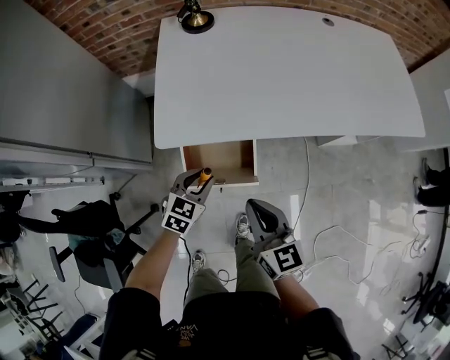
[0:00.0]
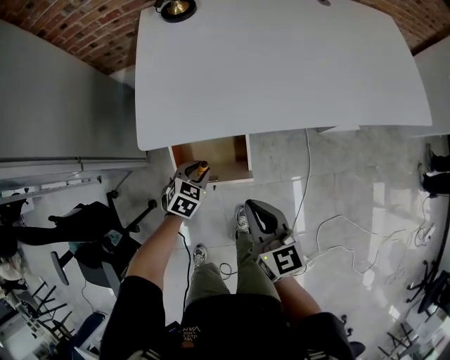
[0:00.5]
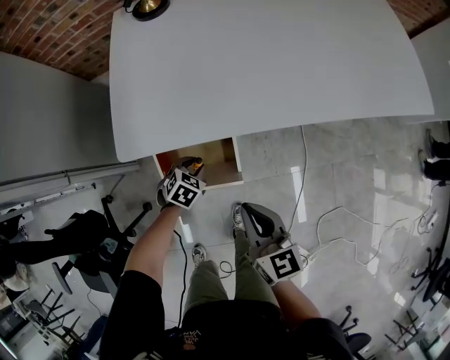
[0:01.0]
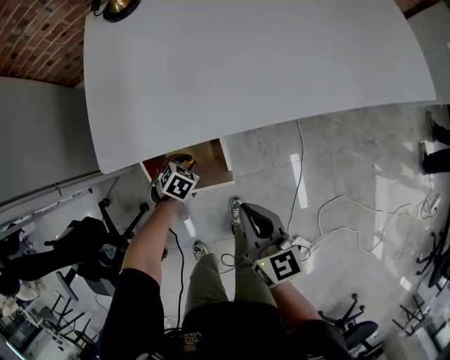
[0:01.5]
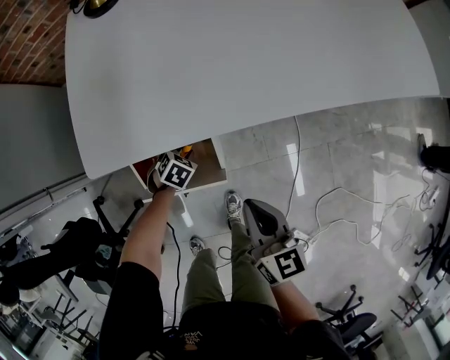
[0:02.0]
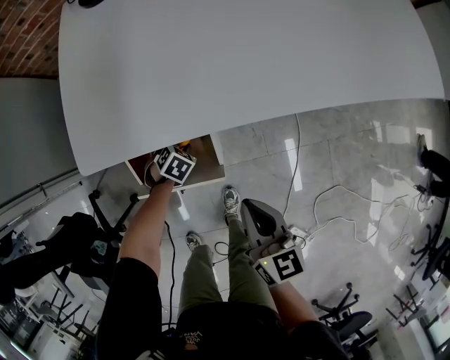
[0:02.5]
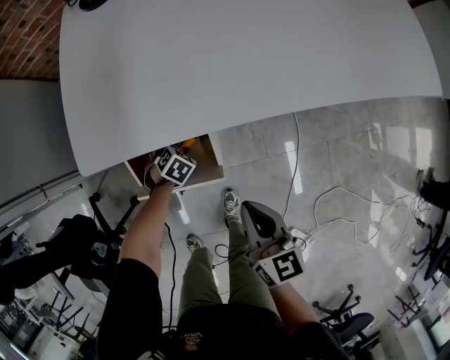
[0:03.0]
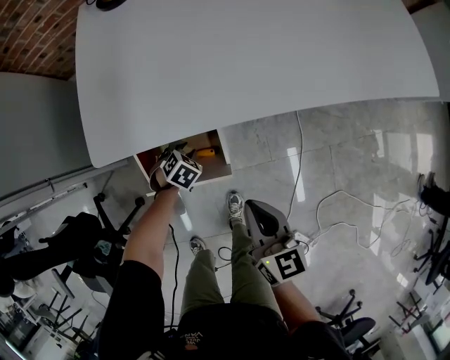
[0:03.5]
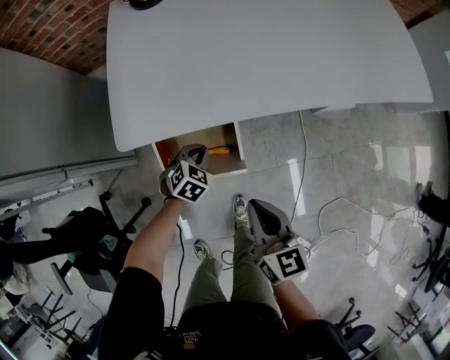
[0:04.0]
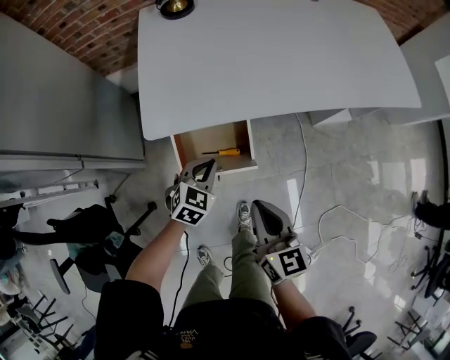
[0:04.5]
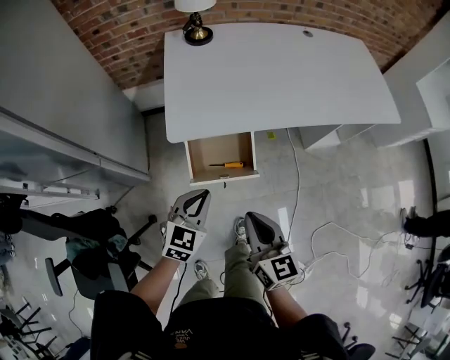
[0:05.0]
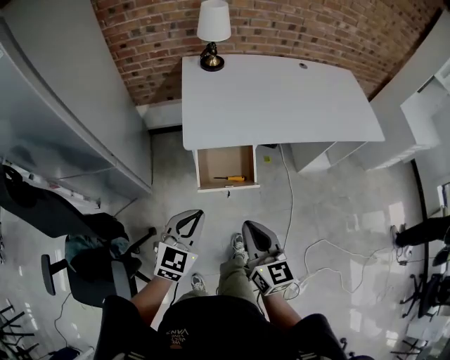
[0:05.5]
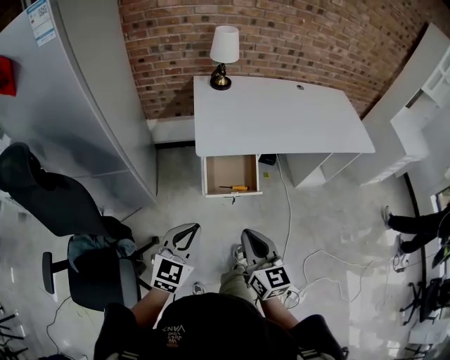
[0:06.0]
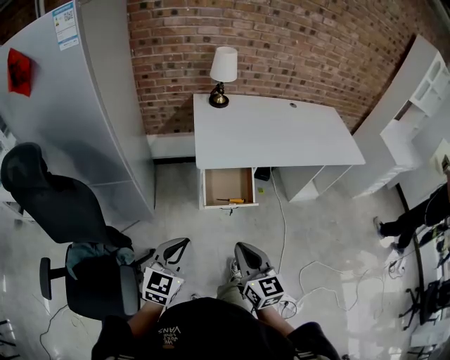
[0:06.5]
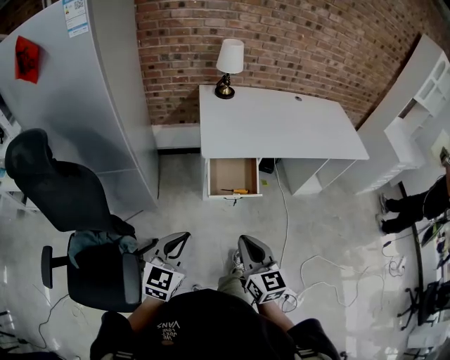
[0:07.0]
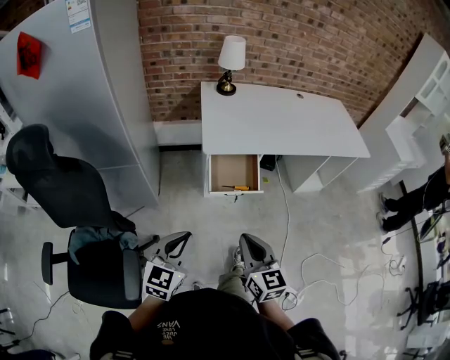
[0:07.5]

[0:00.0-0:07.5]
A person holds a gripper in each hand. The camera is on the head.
0:00.0 to 0:02.0: The right gripper goes some 15 cm downward; the left gripper moves downward, roughly 25 cm, and tips its fingers downward by roughly 30 degrees.
0:02.0 to 0:04.0: The left gripper shifts about 10 cm upward, and closes up, while the right gripper shifts by roughly 10 cm.
0:04.0 to 0:05.5: The right gripper travels backward, upward and to the left by about 30 cm. The left gripper is displaced upward and backward by some 40 cm, and angles its fingers upward, by roughly 40 degrees.
0:05.5 to 0:07.5: Both grippers travel together backward and to the left, approximately 20 cm.

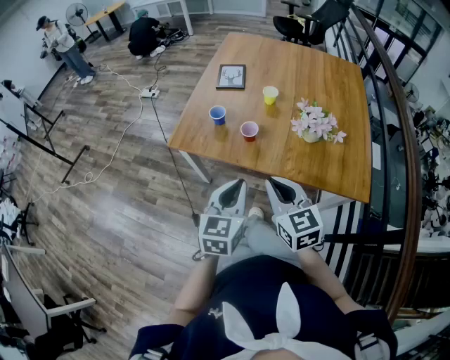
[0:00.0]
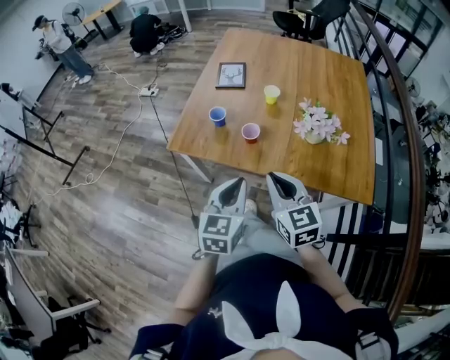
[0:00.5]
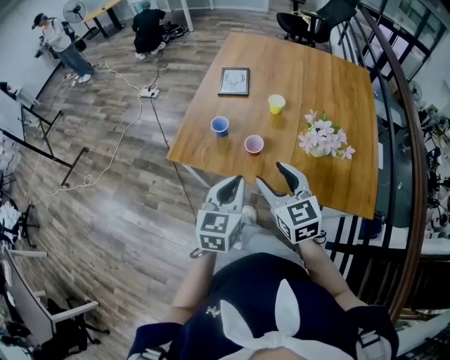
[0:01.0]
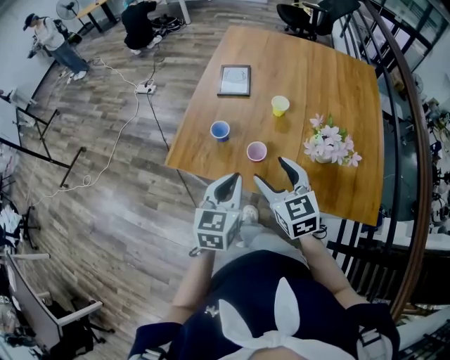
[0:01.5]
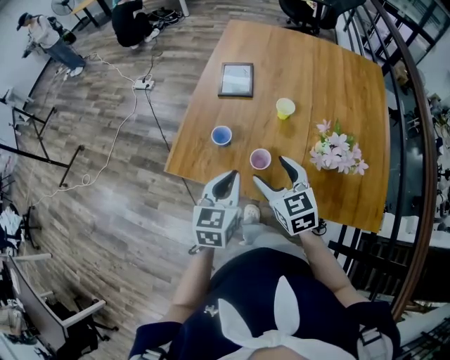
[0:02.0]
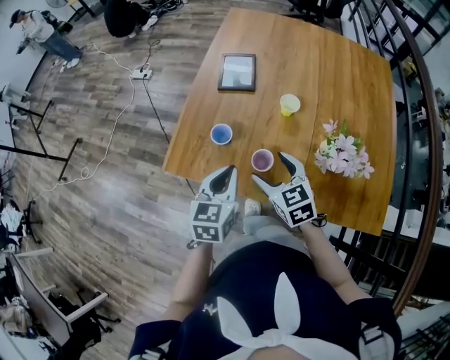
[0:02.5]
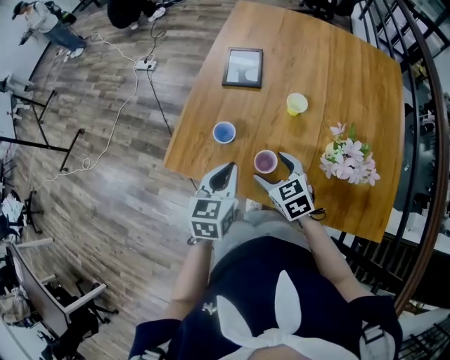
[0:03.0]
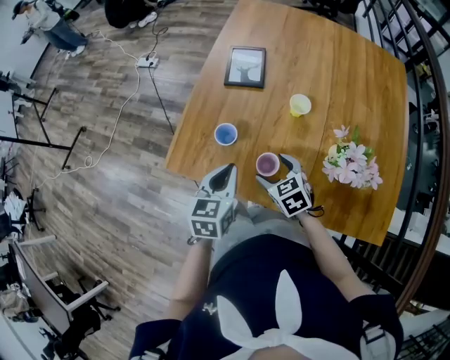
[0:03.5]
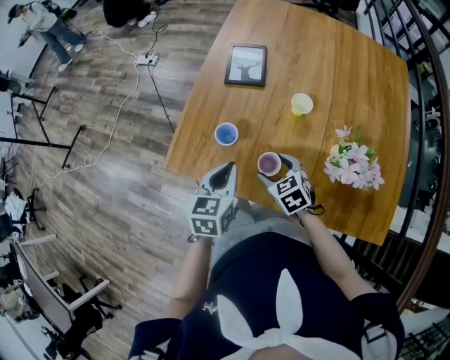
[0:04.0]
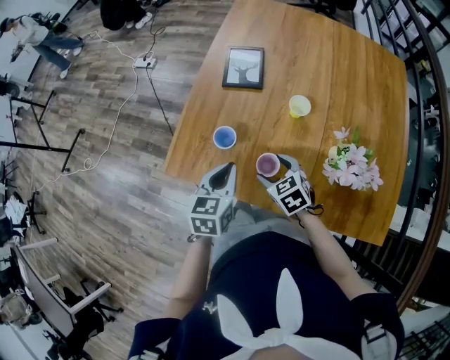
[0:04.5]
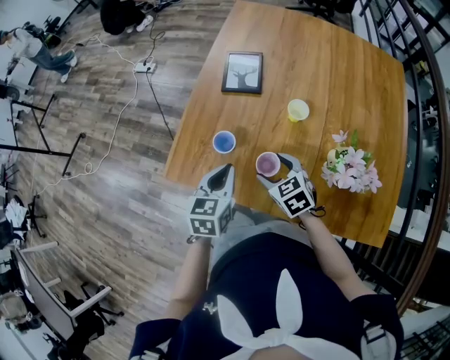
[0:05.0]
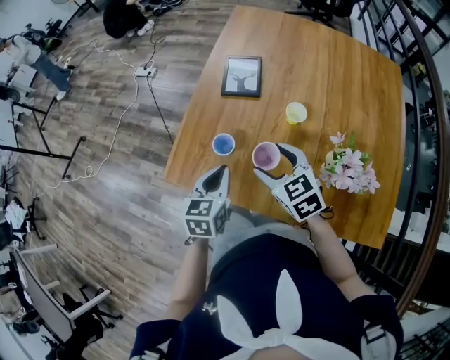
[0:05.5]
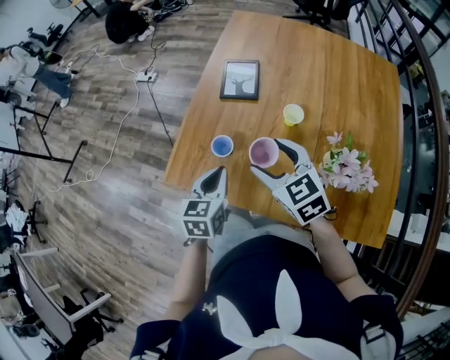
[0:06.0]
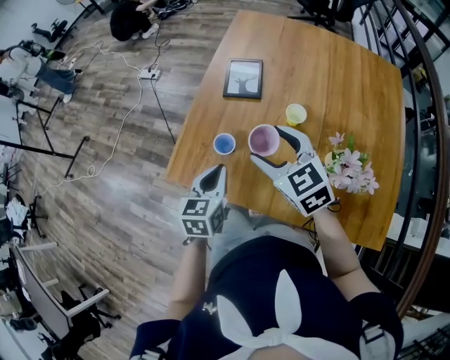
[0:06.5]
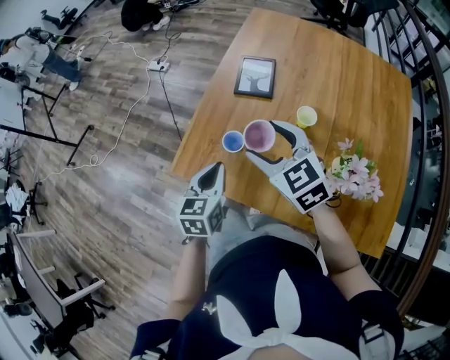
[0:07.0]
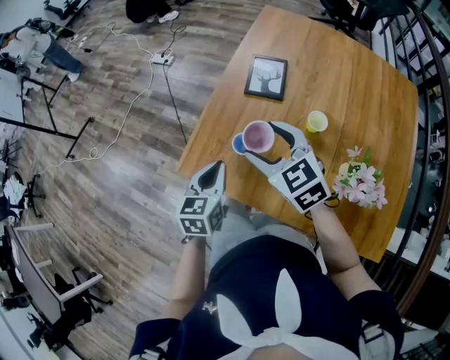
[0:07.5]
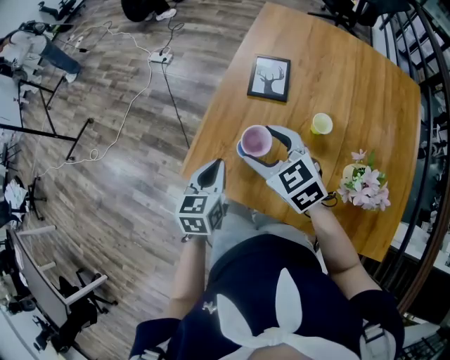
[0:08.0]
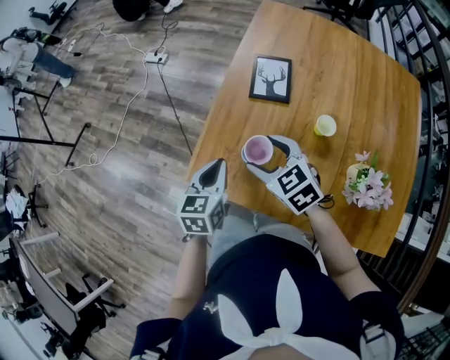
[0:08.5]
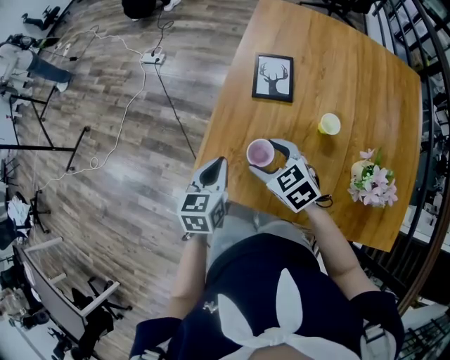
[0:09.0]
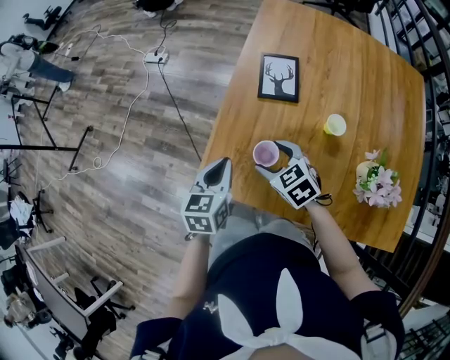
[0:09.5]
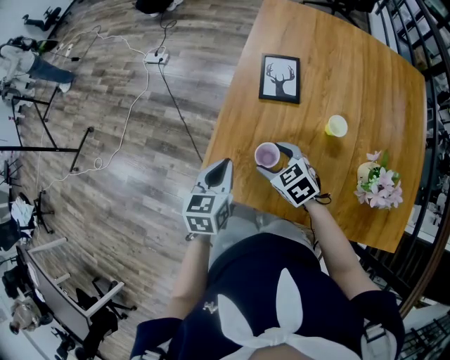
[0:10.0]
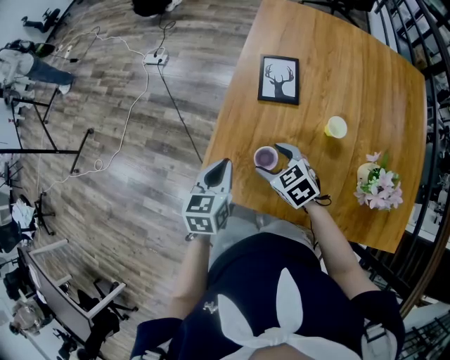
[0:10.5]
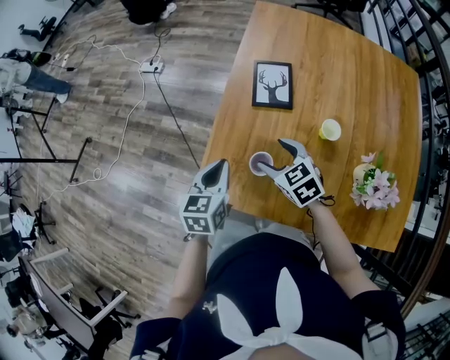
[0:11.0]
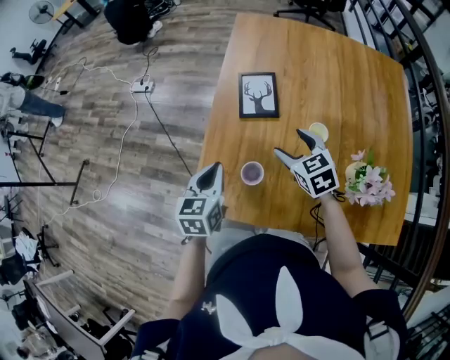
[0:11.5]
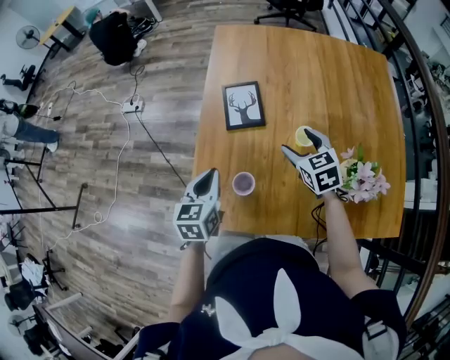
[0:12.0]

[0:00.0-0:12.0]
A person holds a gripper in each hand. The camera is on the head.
0:00.0 to 0:02.0: Both grippers move forward, roughly 25 cm. The right gripper opens up.
0:02.0 to 0:04.0: The left gripper goes some 10 cm forward and downward; the right gripper travels downward and forward by about 20 cm, and changes its angle by roughly 20 degrees.
0:04.0 to 0:06.0: The right gripper travels upward by some 15 cm.
0:06.0 to 0:08.0: Both grippers travel together to the left and forward, approximately 10 cm.
0:08.0 to 0:10.0: The left gripper shifts about 5 cm forward. Meanwhile the right gripper travels downward by approximately 15 cm.
0:10.0 to 0:12.0: The right gripper is displaced to the right by about 20 cm, and changes its angle by approximately 30 degrees; the left gripper heads forward and to the right, covering some 10 cm.

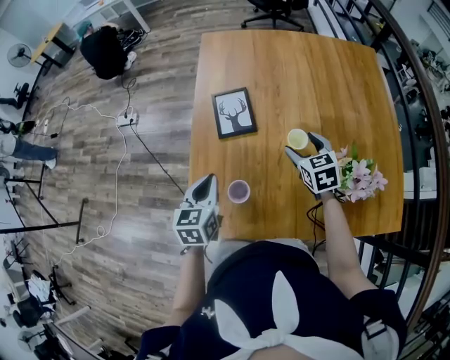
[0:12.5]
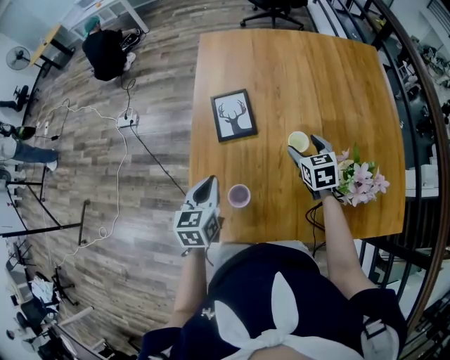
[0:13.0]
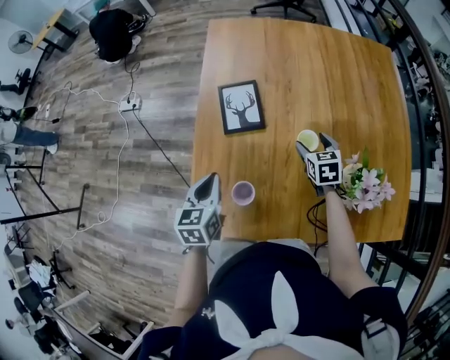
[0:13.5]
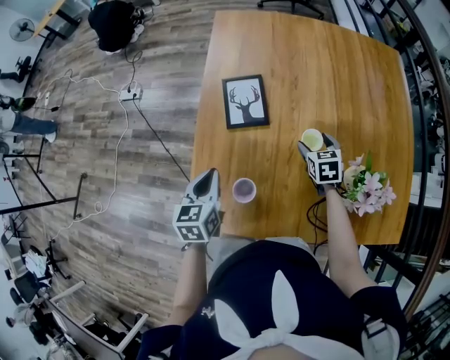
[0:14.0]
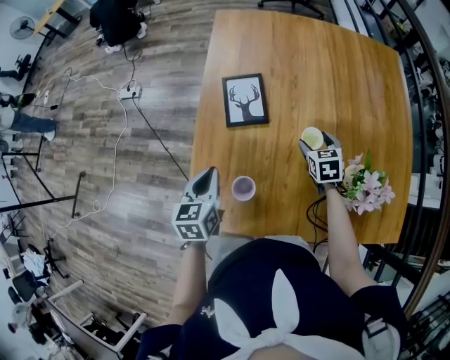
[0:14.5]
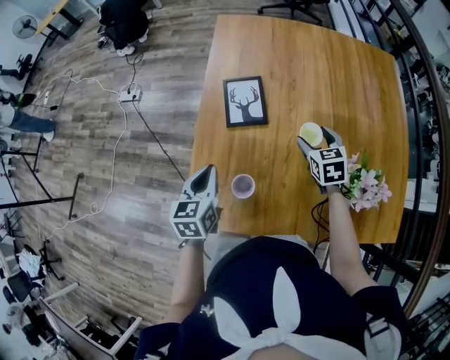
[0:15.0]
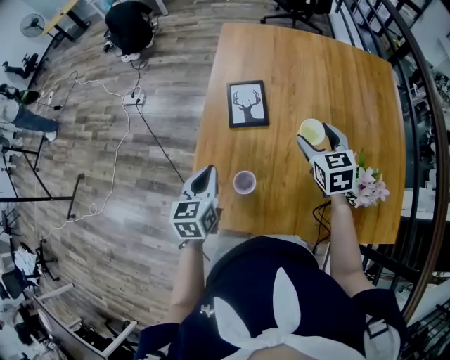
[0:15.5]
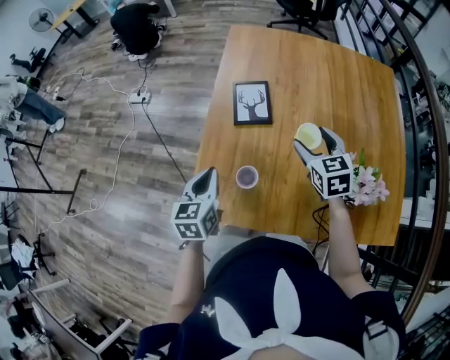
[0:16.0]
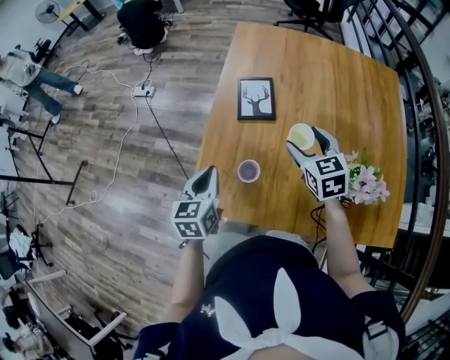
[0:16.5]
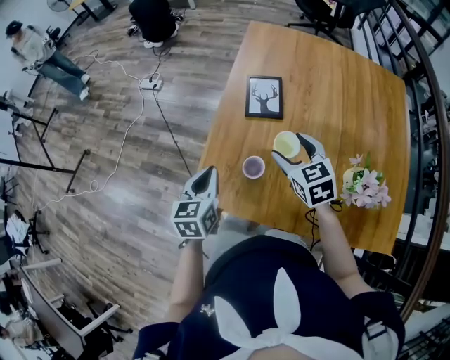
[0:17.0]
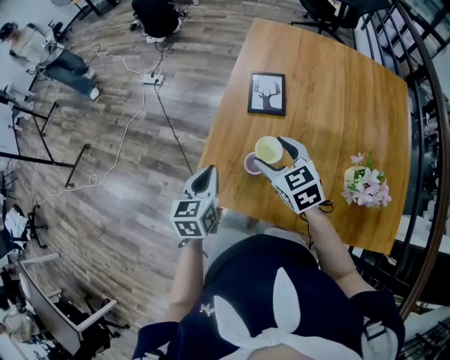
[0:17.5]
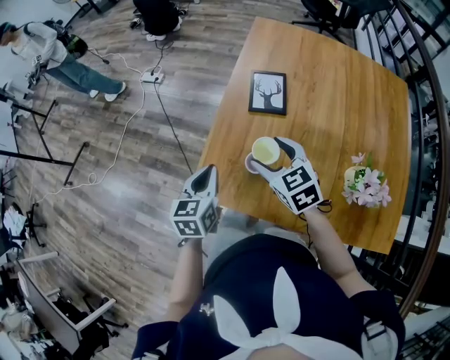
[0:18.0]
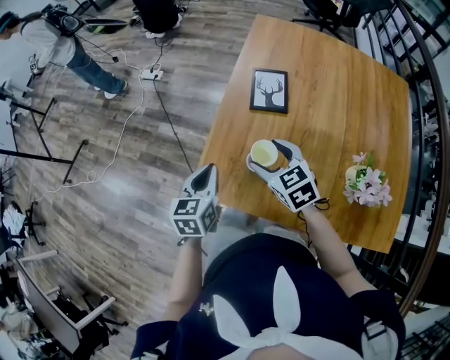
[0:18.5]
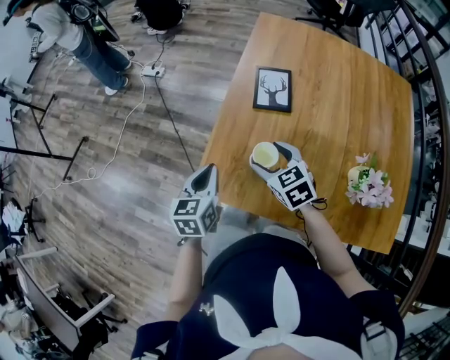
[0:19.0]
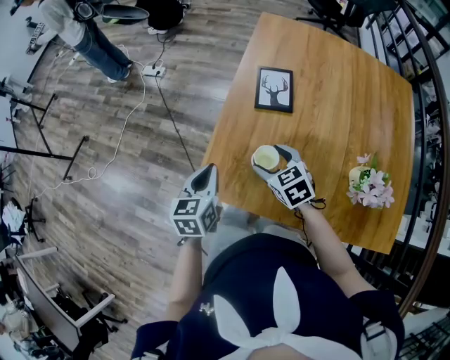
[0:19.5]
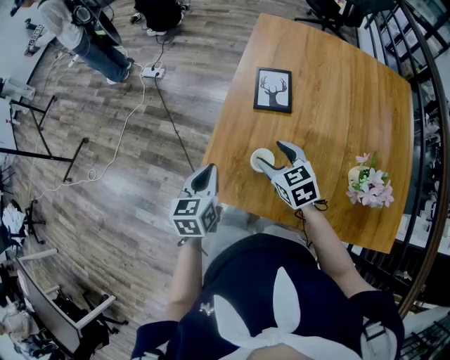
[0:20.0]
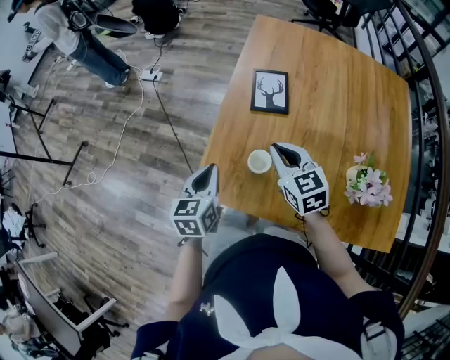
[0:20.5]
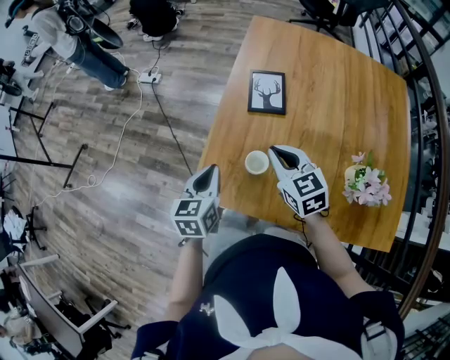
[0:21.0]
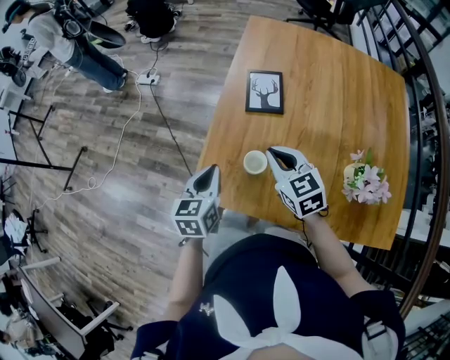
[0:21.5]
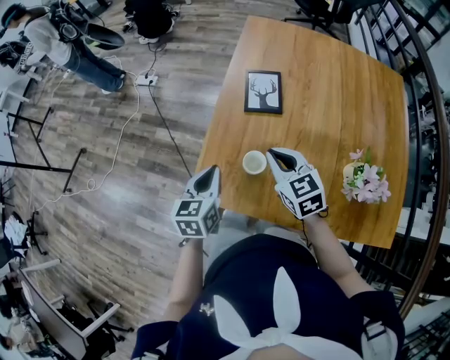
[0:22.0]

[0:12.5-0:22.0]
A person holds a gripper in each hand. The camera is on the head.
0:12.5 to 0:14.5: The right gripper moves downward, some 10 cm.
0:14.5 to 0:16.5: The right gripper shifts about 20 cm upward, to the left and backward, and swivels some 20 degrees; the left gripper is displaced backward by approximately 10 cm.
0:16.5 to 0:18.0: The right gripper moves to the left, about 15 cm, and turns by some 20 degrees.
0:18.0 to 0:20.0: The right gripper is displaced downward by about 5 cm.
0:20.0 to 0:22.0: The right gripper moves some 5 cm, and closes up.
